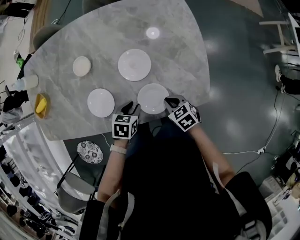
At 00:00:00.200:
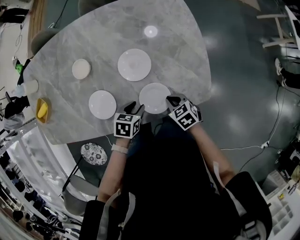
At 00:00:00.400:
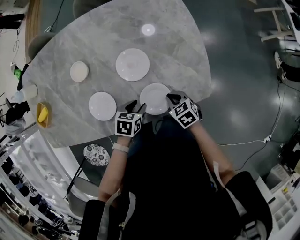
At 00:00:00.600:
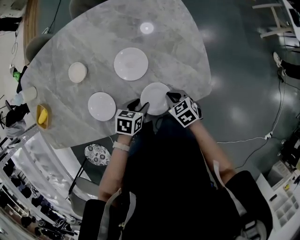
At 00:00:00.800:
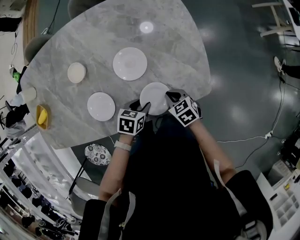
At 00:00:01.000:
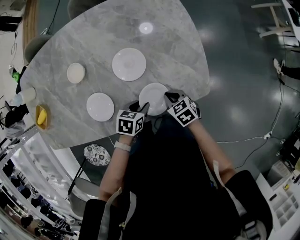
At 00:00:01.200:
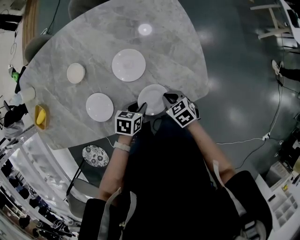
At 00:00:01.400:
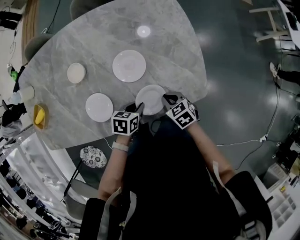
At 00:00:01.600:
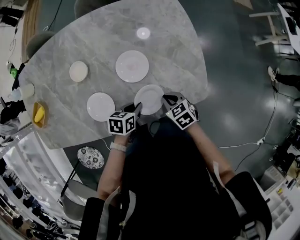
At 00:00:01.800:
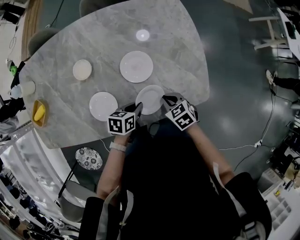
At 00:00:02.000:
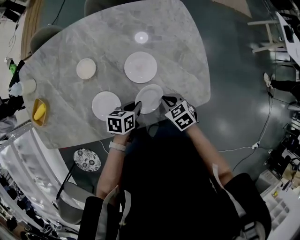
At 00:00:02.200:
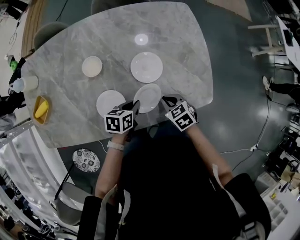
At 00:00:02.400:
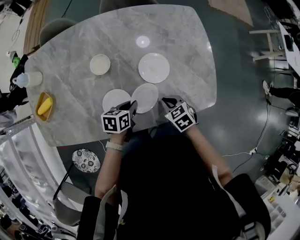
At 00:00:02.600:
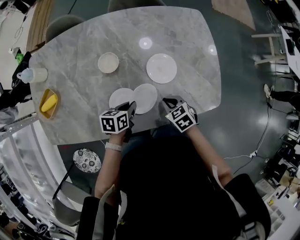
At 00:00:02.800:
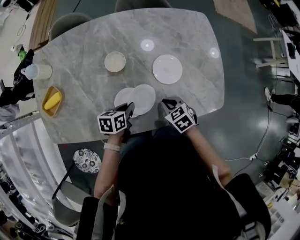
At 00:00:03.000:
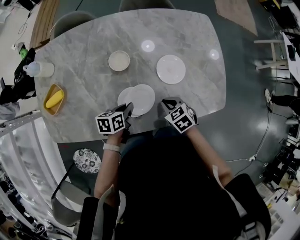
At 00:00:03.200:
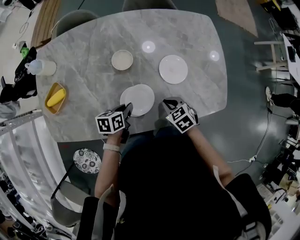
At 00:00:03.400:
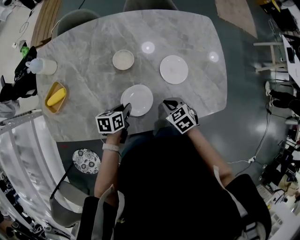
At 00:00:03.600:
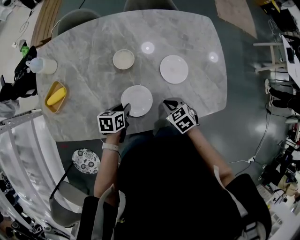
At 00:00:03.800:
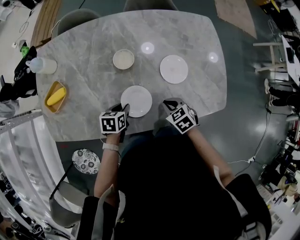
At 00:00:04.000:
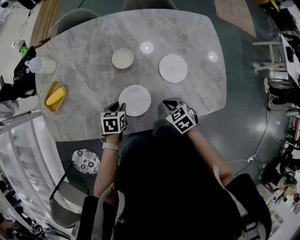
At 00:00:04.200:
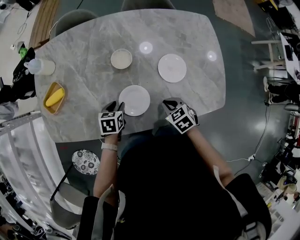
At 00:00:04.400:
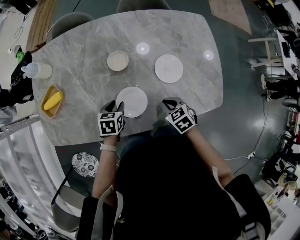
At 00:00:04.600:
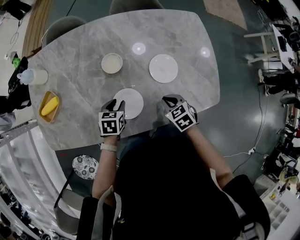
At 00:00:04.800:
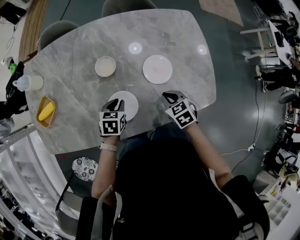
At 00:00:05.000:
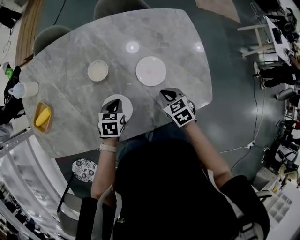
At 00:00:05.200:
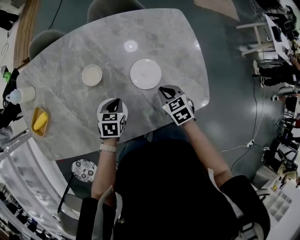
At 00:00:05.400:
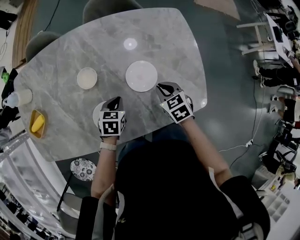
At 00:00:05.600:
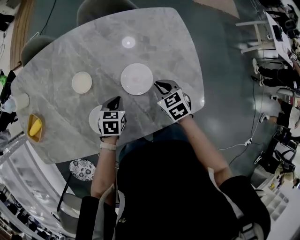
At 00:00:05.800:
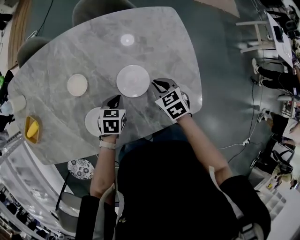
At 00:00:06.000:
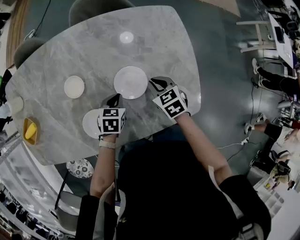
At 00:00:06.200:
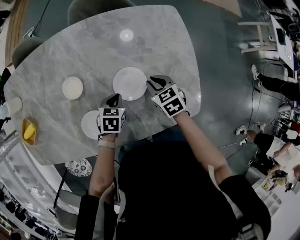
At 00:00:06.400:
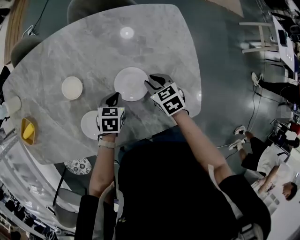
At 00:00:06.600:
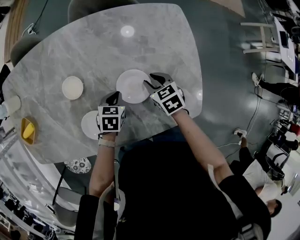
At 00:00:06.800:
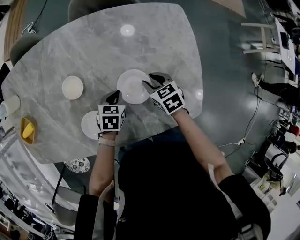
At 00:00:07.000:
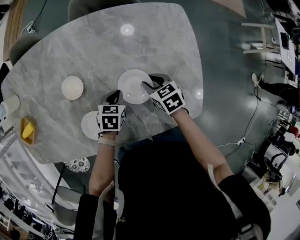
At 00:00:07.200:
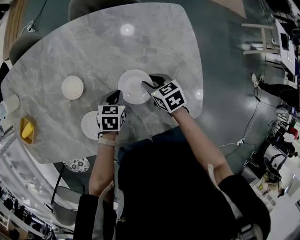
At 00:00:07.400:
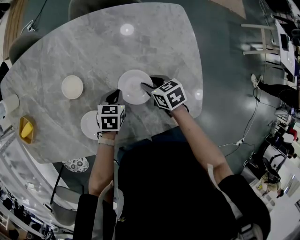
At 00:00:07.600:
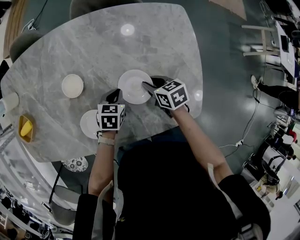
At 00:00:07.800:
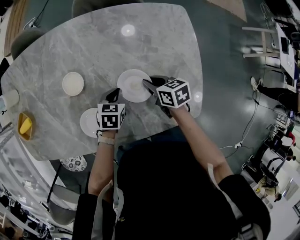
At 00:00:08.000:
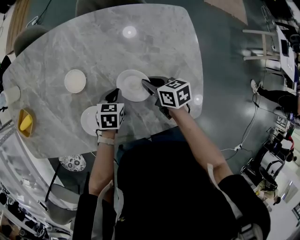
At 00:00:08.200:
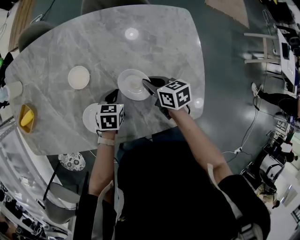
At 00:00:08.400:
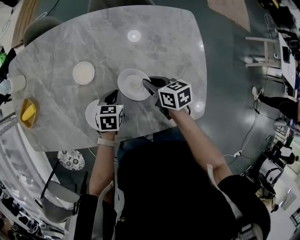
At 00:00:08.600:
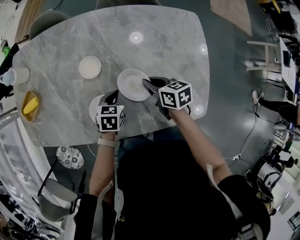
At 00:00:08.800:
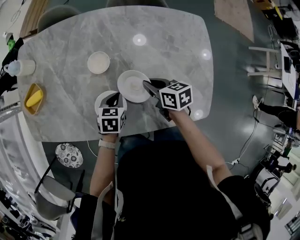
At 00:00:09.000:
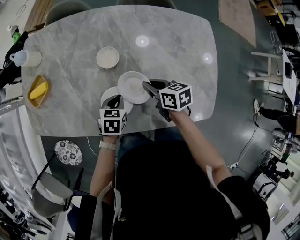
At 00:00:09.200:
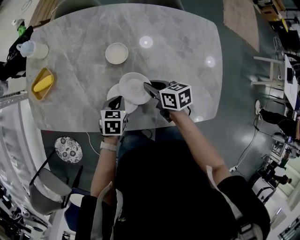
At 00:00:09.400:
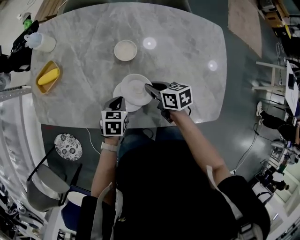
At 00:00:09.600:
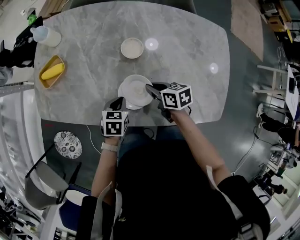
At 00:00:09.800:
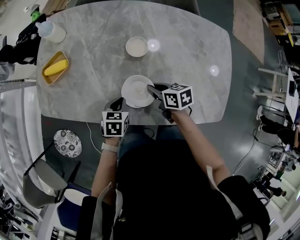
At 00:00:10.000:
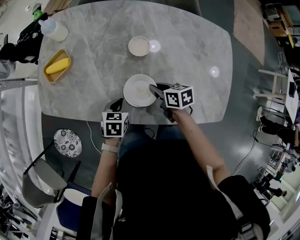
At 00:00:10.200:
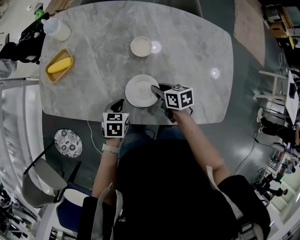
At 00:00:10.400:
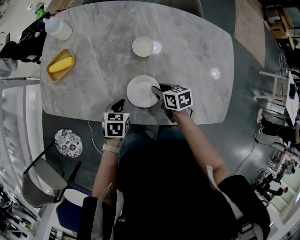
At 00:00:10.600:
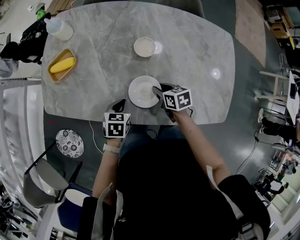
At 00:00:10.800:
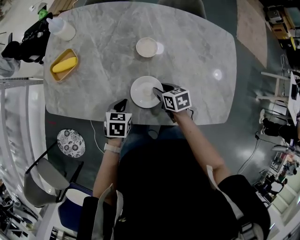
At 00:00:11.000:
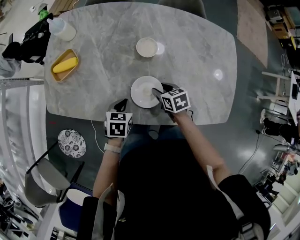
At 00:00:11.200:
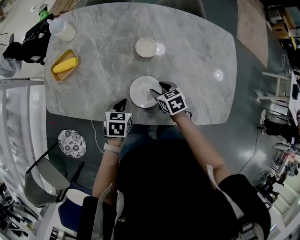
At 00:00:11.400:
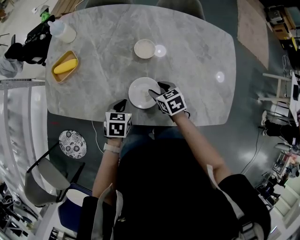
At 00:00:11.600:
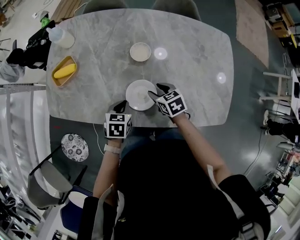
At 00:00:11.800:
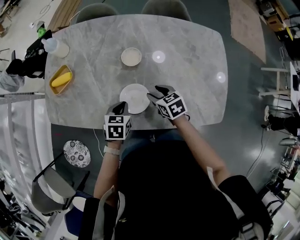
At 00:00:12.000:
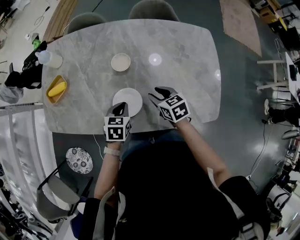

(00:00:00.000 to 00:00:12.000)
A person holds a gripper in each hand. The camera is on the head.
00:00:00.000 - 00:00:01.600: The grippers move only a little.
00:00:01.600 - 00:00:03.000: Both grippers travel together to the left, some 20 cm.
00:00:03.000 - 00:00:04.400: The left gripper heads to the left, covering some 5 cm, changes its angle by approximately 20 degrees, and opens its fingers.
00:00:04.400 - 00:00:06.000: The left gripper goes roughly 25 cm to the right and forward, and closes; the right gripper shifts about 20 cm forward and to the right.
00:00:06.000 - 00:00:07.600: The right gripper rotates about 20 degrees, and opens up.
00:00:07.600 - 00:00:09.000: The left gripper moves to the left and backward, approximately 15 cm. Meanwhile the right gripper is displaced to the left and upward by some 15 cm.
00:00:09.000 - 00:00:10.400: The right gripper moves to the left and downward, about 10 cm; the left gripper shifts about 15 cm to the left.
00:00:10.400 - 00:00:12.000: The left gripper goes approximately 10 cm to the right and upward; the right gripper moves upward and to the right, about 10 cm.

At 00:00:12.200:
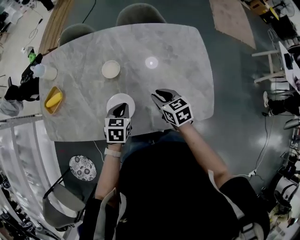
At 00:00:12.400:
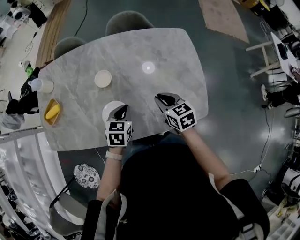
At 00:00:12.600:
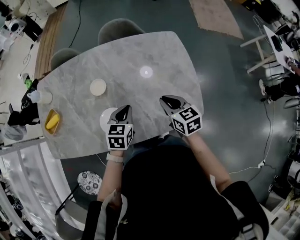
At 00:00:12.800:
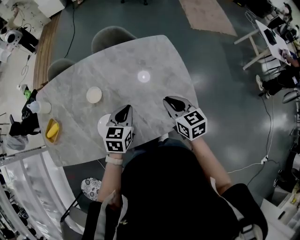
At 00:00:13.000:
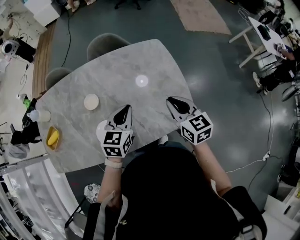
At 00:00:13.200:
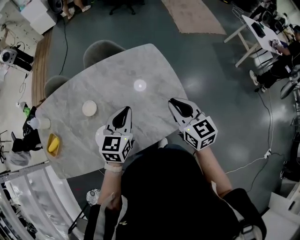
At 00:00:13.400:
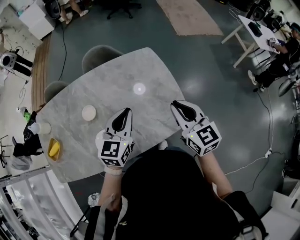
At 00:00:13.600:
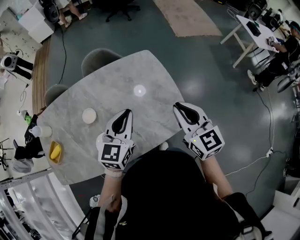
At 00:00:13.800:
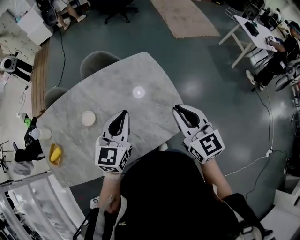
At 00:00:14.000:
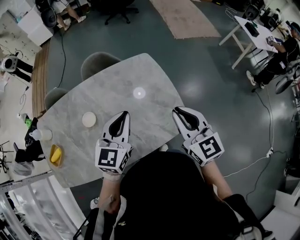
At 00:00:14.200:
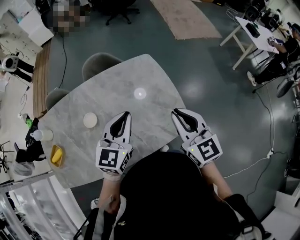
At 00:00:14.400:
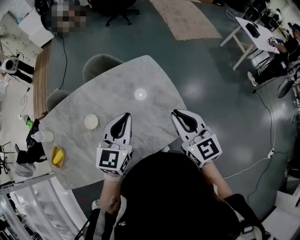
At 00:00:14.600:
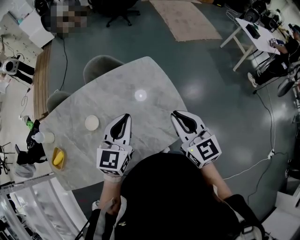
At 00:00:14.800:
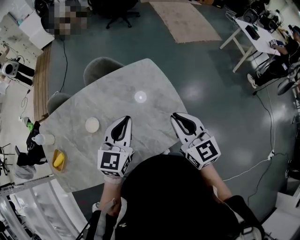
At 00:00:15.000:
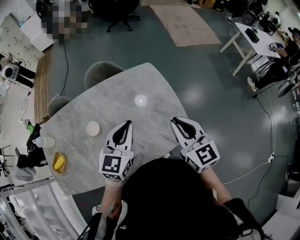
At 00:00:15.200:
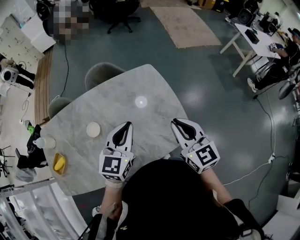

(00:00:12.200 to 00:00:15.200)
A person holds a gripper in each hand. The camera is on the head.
00:00:12.200 - 00:00:13.800: The grippers both shift upward by roughly 25 cm. The left gripper angles its fingers upward, by approximately 40 degrees. The right gripper turns by roughly 40 degrees.
00:00:13.800 - 00:00:15.200: The grippers stay close to where they were, moving slightly.

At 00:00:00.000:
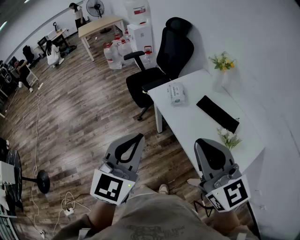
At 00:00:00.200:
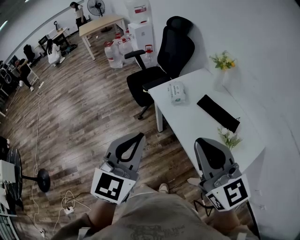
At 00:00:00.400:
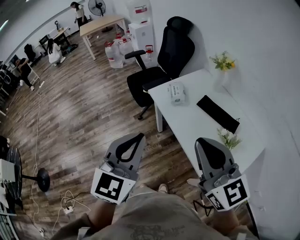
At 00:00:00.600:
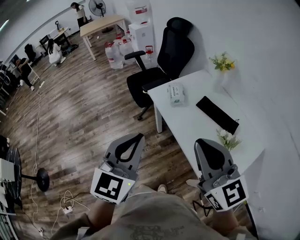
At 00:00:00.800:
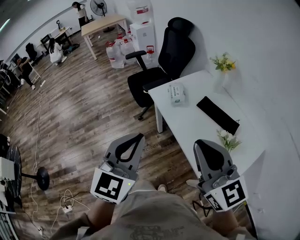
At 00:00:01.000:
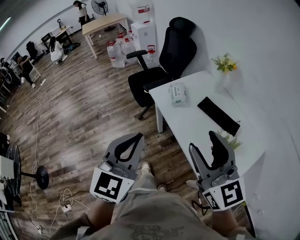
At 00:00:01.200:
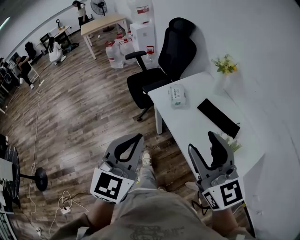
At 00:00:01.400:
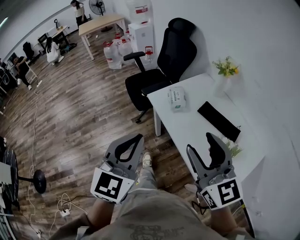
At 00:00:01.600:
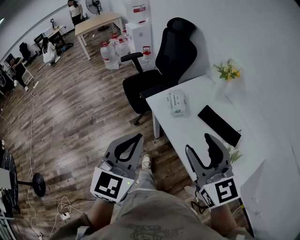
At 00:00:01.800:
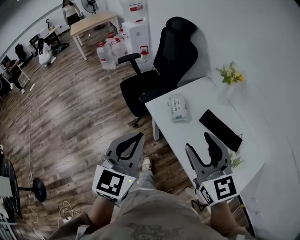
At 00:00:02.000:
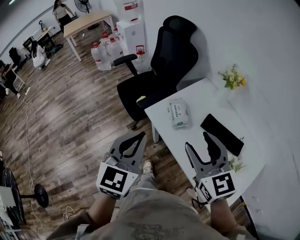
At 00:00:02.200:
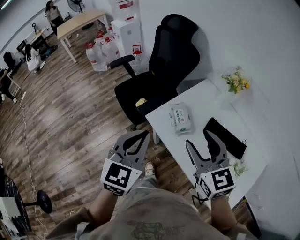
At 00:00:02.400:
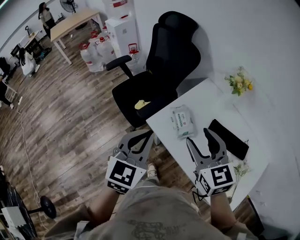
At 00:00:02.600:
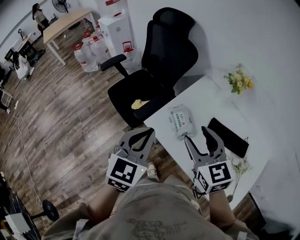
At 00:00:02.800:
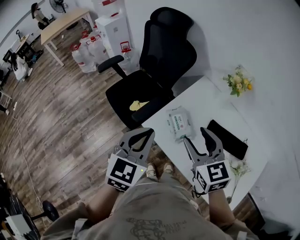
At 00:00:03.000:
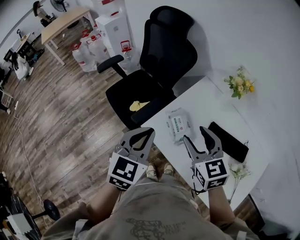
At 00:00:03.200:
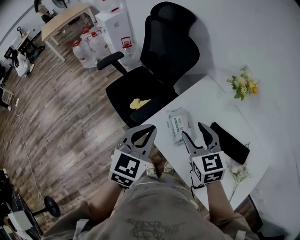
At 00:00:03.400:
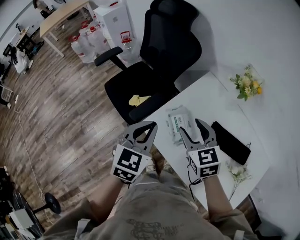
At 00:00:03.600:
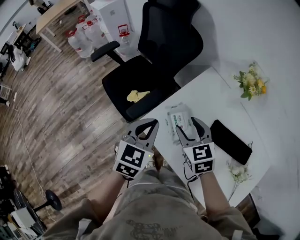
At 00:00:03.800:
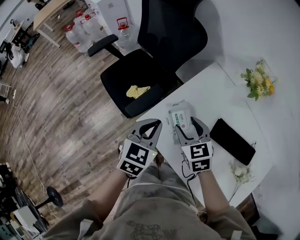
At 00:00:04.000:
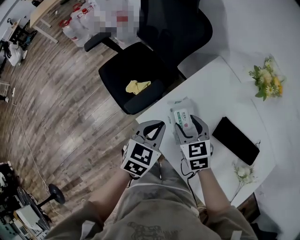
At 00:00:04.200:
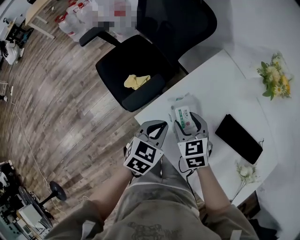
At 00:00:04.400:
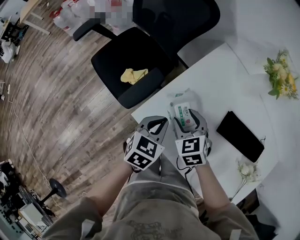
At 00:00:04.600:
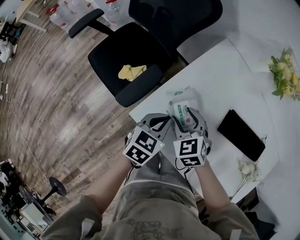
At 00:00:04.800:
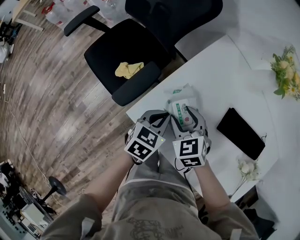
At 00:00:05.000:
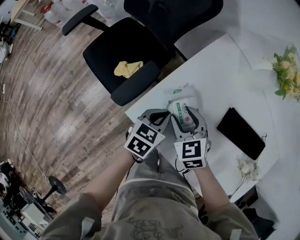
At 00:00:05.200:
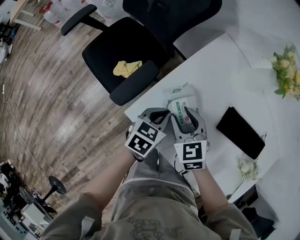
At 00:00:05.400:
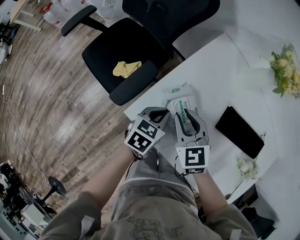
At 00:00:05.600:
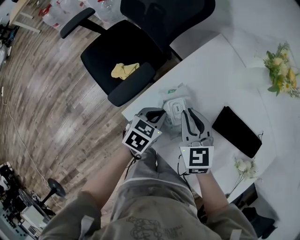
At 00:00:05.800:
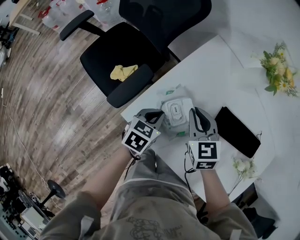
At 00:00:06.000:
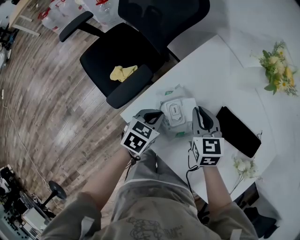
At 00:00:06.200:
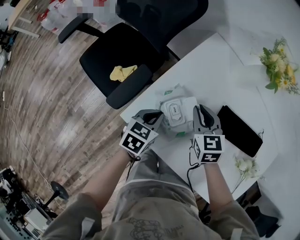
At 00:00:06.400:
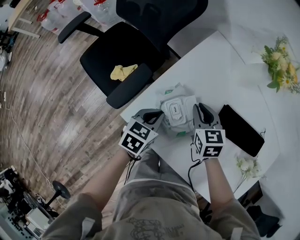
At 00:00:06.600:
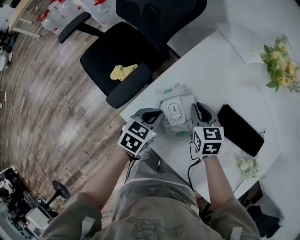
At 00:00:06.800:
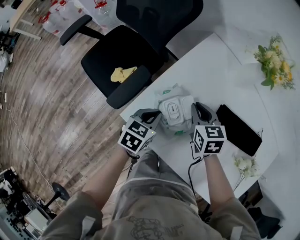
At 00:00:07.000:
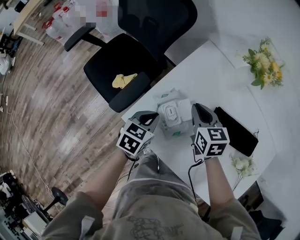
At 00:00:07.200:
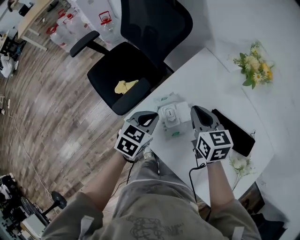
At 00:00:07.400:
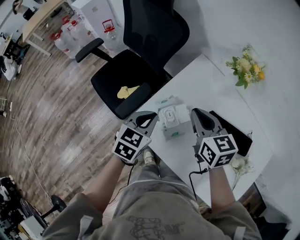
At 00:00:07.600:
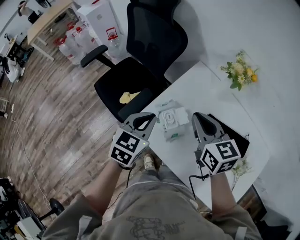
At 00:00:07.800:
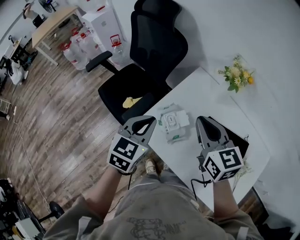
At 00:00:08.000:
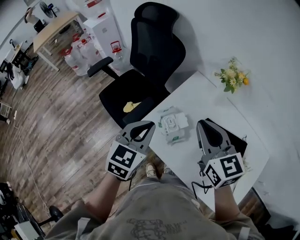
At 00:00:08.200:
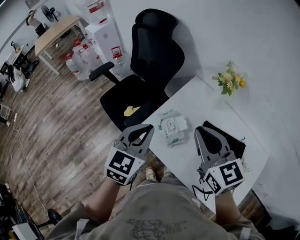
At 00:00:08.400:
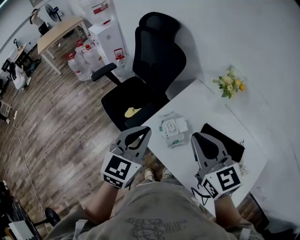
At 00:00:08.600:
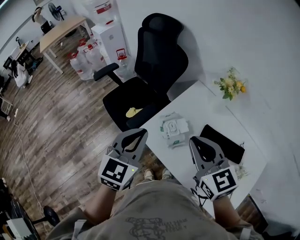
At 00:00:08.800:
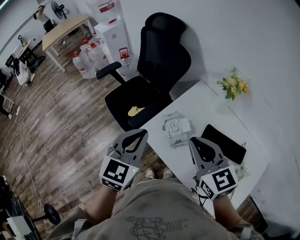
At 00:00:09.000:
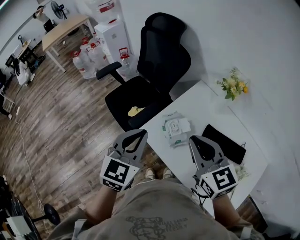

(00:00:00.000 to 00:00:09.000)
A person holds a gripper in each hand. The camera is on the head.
00:00:00.000 - 00:00:01.600: The grippers both shift forward by about 10 cm. The right gripper opens up.
00:00:01.600 - 00:00:03.000: Both grippers move forward, approximately 30 cm. The right gripper swivels some 30 degrees; the left gripper turns by approximately 20 degrees.
00:00:03.000 - 00:00:04.400: The two grippers go some 25 cm downward. The left gripper turns by about 30 degrees; the right gripper swivels approximately 20 degrees.
00:00:04.400 - 00:00:06.000: The left gripper heads downward, covering about 5 cm. The right gripper heads to the right, covering roughly 10 cm, and closes its fingers.
00:00:06.000 - 00:00:07.600: The two grippers go some 20 cm upward. The right gripper changes its angle by roughly 20 degrees. The left gripper swivels about 20 degrees.
00:00:07.600 - 00:00:09.000: The left gripper travels upward and backward by approximately 15 cm; the right gripper moves backward and upward, approximately 15 cm.
